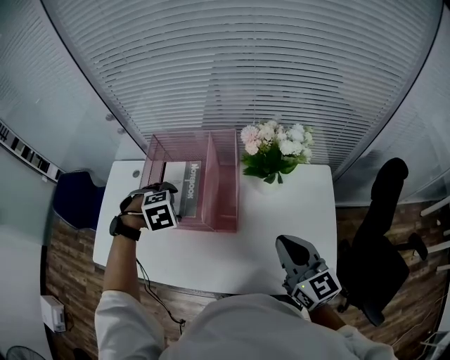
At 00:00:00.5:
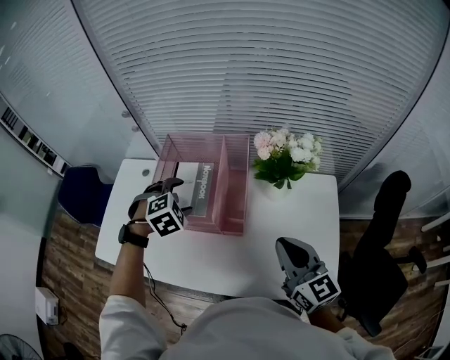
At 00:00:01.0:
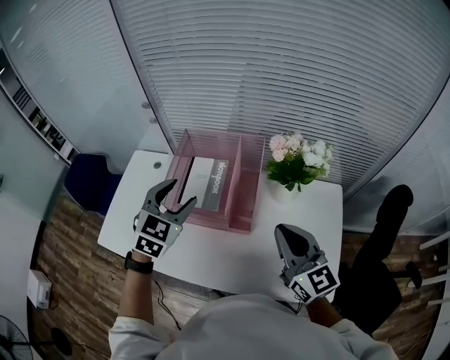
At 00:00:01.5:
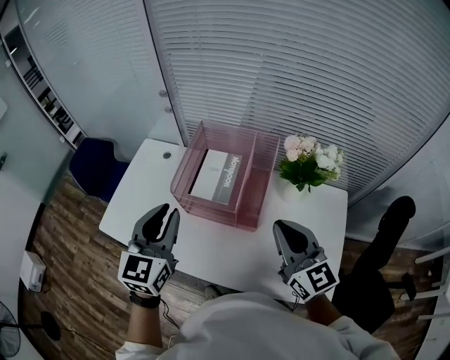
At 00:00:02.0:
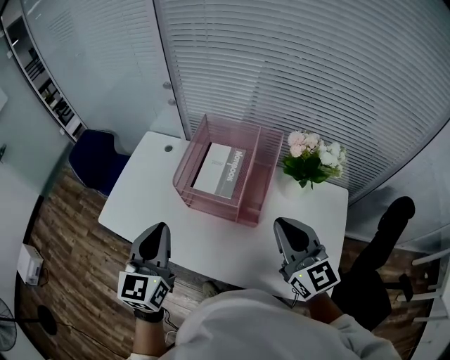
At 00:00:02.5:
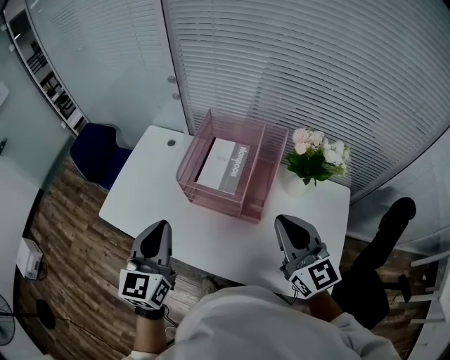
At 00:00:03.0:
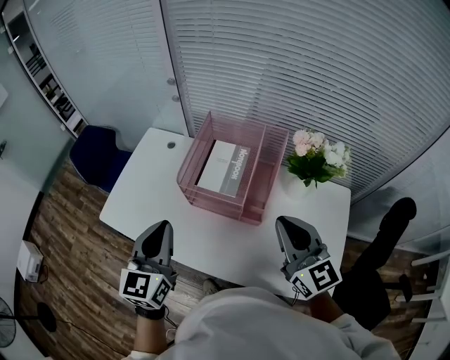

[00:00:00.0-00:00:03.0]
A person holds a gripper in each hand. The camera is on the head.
00:00:00.0 to 00:00:01.5: The left gripper travels upward by about 20 cm, tilts its fingers approximately 70 degrees upward, and closes its fingers. Meanwhile the right gripper changes place by approximately 10 cm.
00:00:01.5 to 00:00:03.0: The left gripper moves some 5 cm.

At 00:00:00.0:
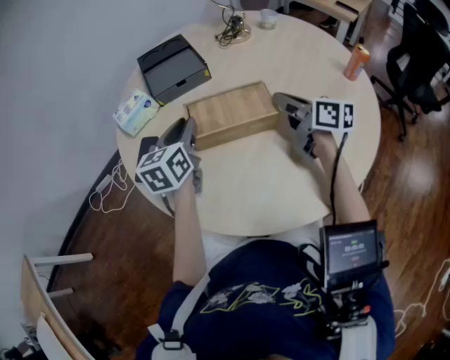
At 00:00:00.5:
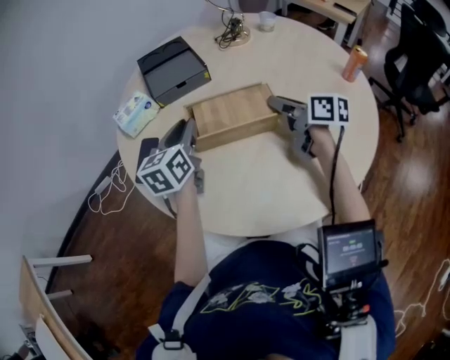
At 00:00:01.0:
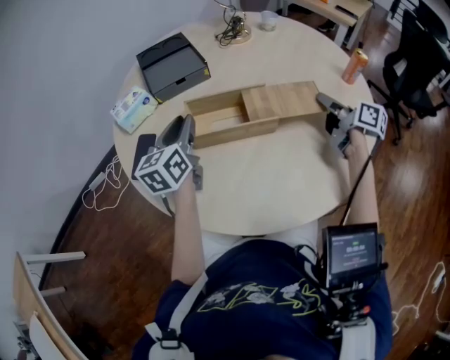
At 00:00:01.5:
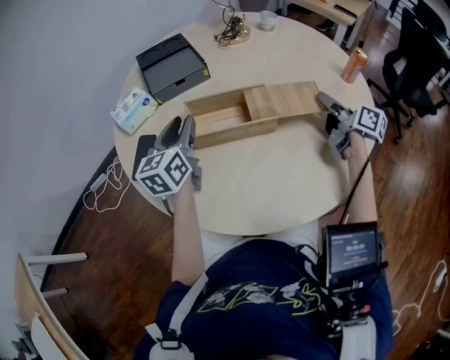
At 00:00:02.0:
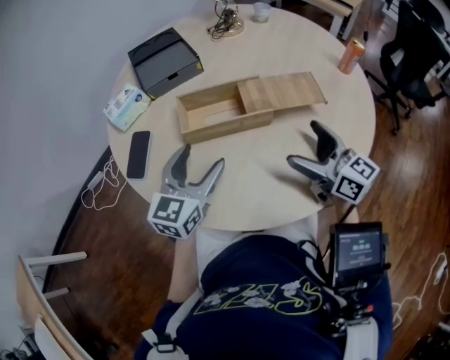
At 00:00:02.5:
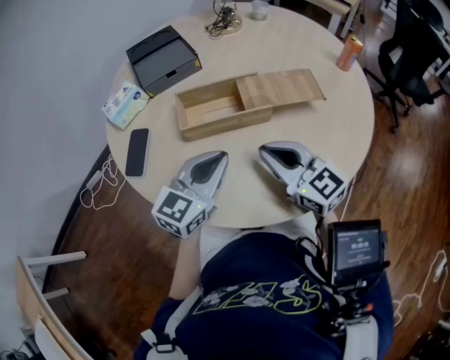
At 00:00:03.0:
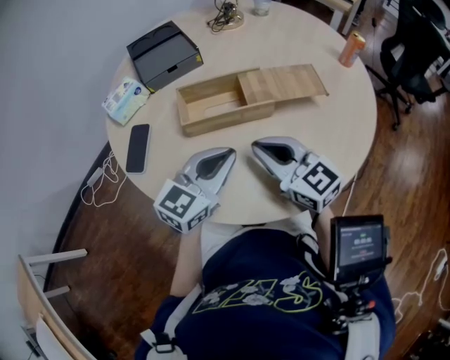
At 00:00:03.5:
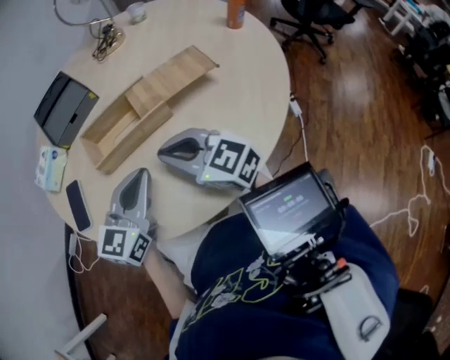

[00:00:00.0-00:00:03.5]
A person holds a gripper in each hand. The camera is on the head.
00:00:00.0 to 00:00:02.0: The two grippers go roughly 10 cm backward. The right gripper travels to the right and back again, approximately 15 cm each way, changes its angle by about 20 degrees, and opens its fingers; the left gripper swivels approximately 20 degrees, and opens.
00:00:02.0 to 00:00:03.5: The left gripper ends up about 5 cm from where it was, and closes, while the right gripper is displaced to the left by roughly 15 cm, and closes up.

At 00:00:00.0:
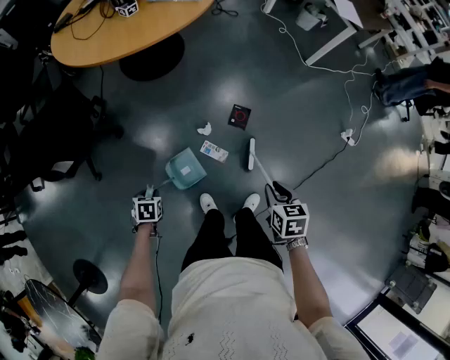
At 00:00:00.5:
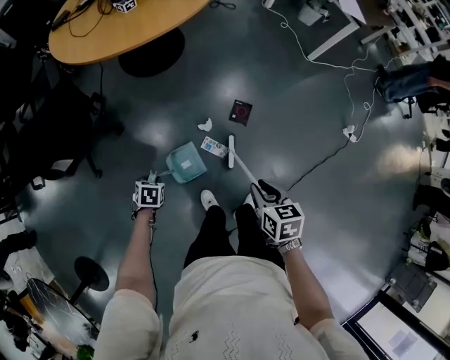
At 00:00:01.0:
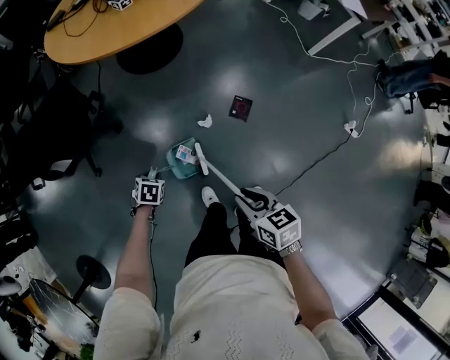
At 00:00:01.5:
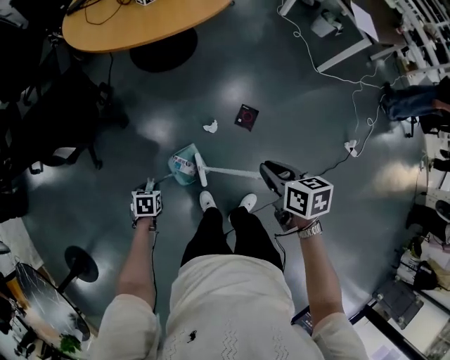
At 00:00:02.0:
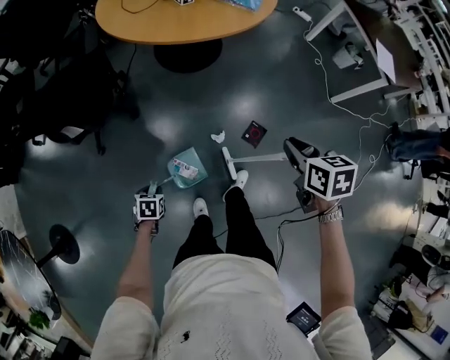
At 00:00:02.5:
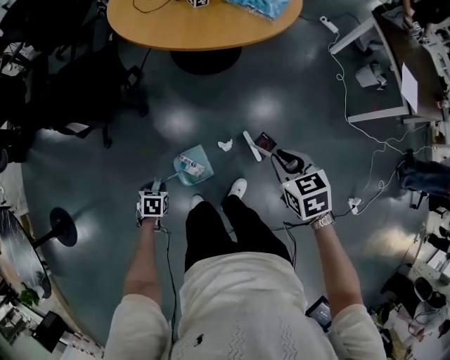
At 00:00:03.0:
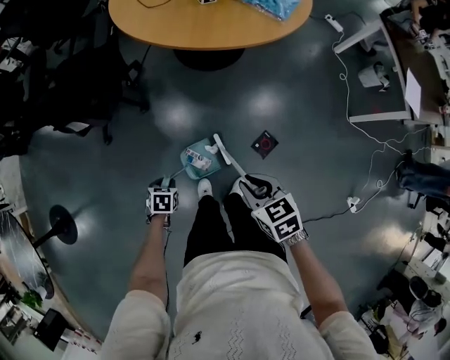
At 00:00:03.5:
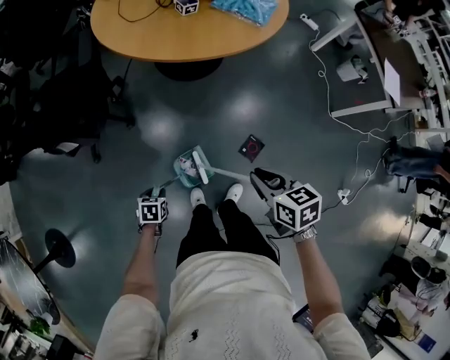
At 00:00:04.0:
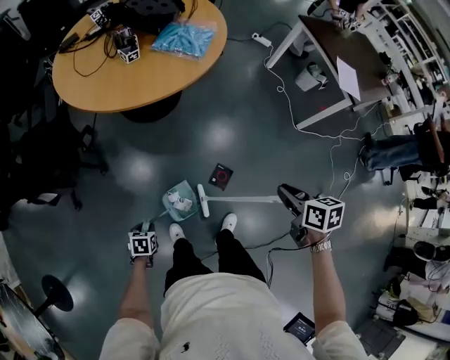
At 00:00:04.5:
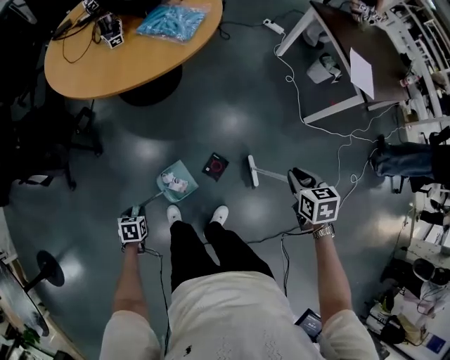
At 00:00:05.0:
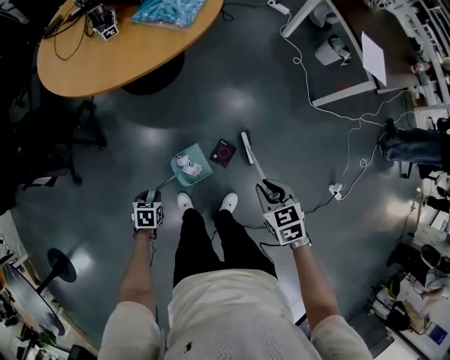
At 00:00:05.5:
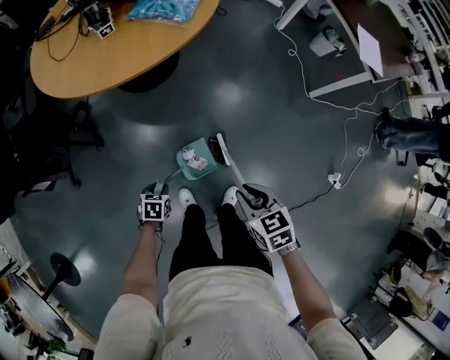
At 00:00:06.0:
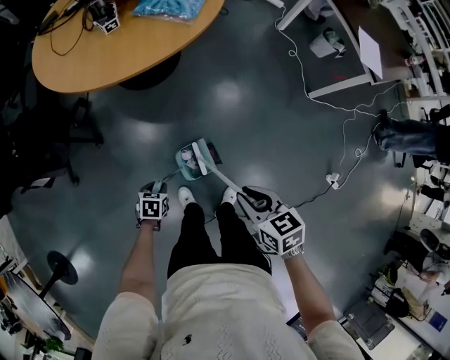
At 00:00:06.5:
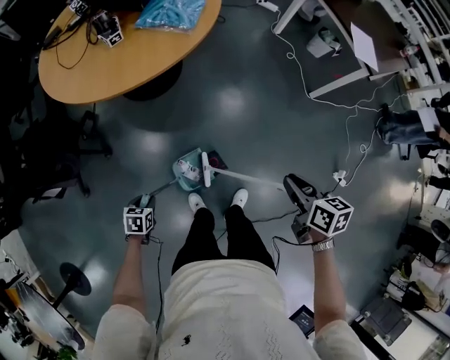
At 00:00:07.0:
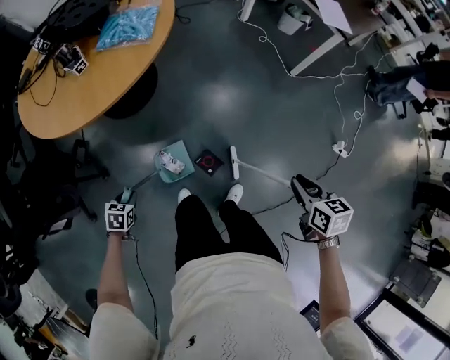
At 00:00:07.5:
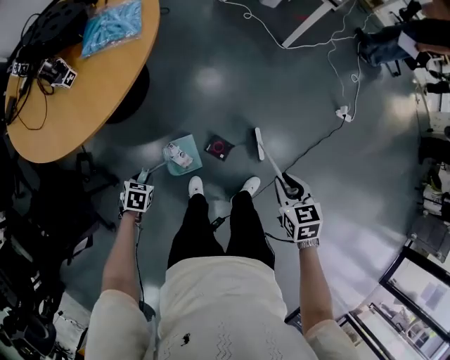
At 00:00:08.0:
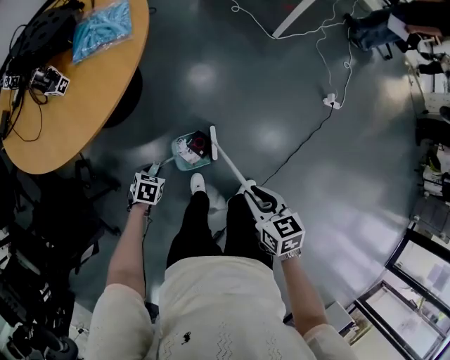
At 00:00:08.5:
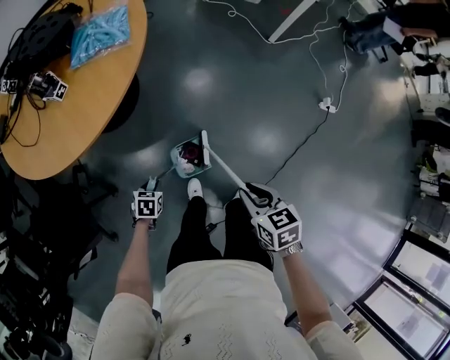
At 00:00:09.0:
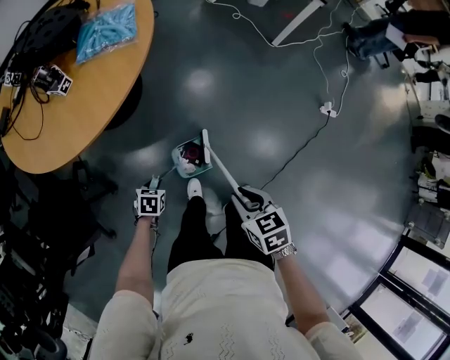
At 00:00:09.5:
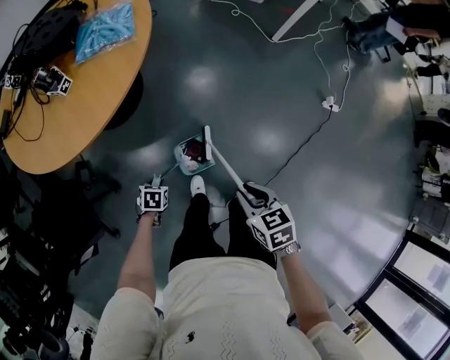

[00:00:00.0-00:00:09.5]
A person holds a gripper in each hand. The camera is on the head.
00:00:00.0 to 00:00:02.0: The right gripper shifts by about 25 cm, and rotates about 20 degrees.
00:00:02.0 to 00:00:04.0: The left gripper is displaced to the right and forward by approximately 15 cm, while the right gripper moves to the right, roughly 20 cm.
00:00:04.0 to 00:00:05.5: The left gripper travels to the right and forward by approximately 15 cm. The right gripper goes about 10 cm downward, reaches about 15 cm to the right, then returns, and rotates some 20 degrees.
00:00:05.5 to 00:00:07.5: The left gripper shifts by some 20 cm, and turns by some 40 degrees. Meanwhile the right gripper moves some 5 cm upward and comes back, and changes its angle by about 40 degrees.
00:00:07.5 to 00:00:09.5: The right gripper travels to the left by about 15 cm.

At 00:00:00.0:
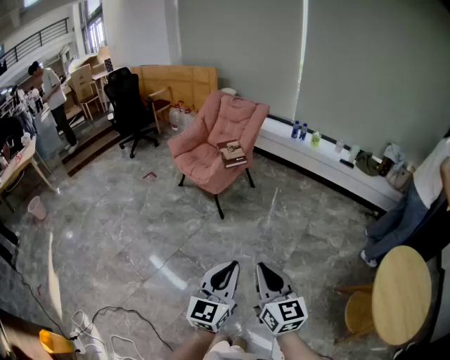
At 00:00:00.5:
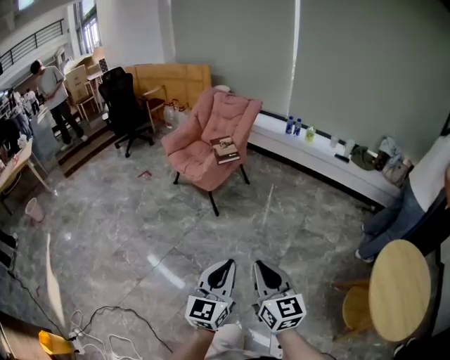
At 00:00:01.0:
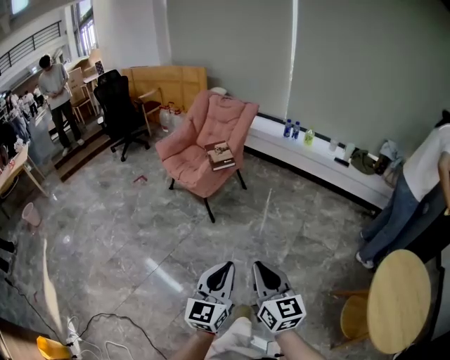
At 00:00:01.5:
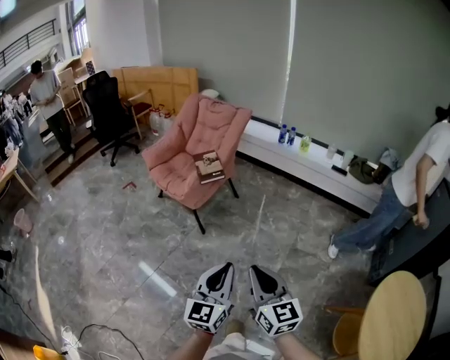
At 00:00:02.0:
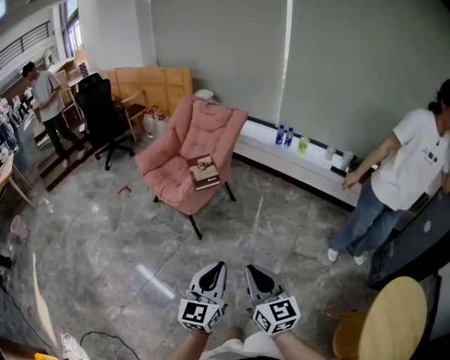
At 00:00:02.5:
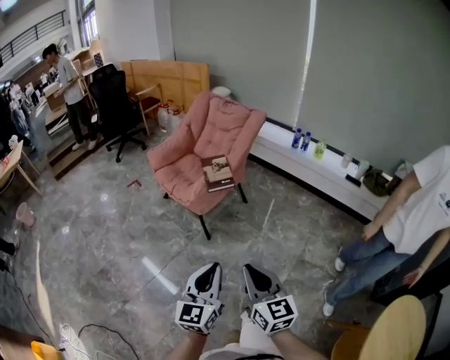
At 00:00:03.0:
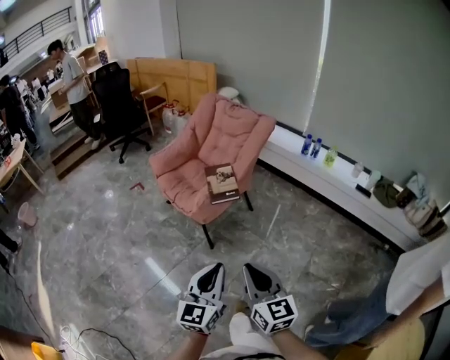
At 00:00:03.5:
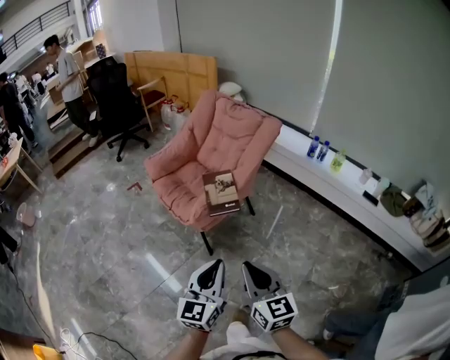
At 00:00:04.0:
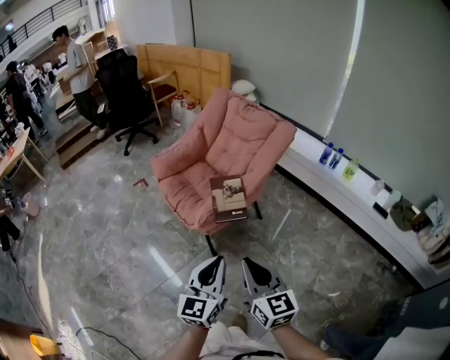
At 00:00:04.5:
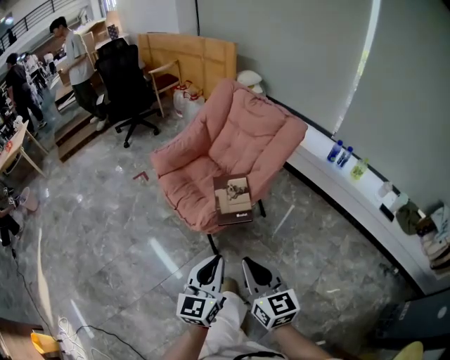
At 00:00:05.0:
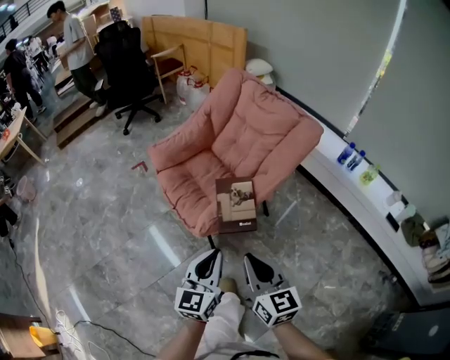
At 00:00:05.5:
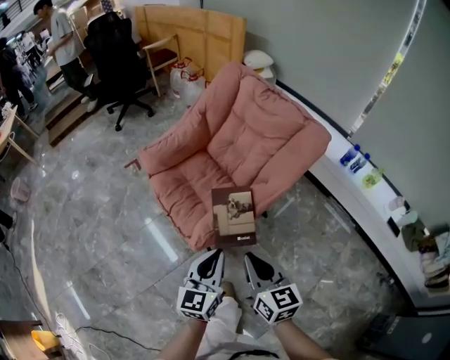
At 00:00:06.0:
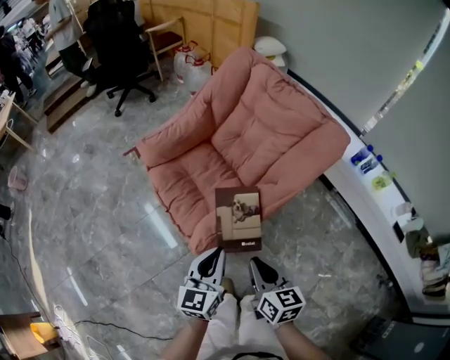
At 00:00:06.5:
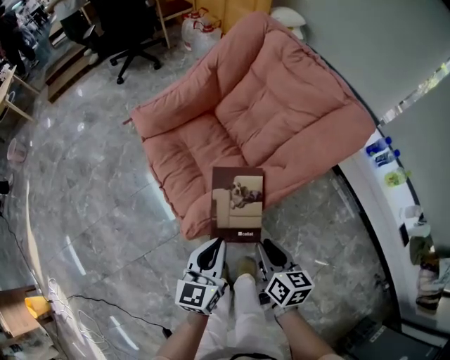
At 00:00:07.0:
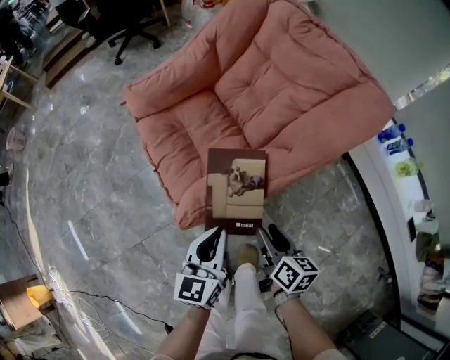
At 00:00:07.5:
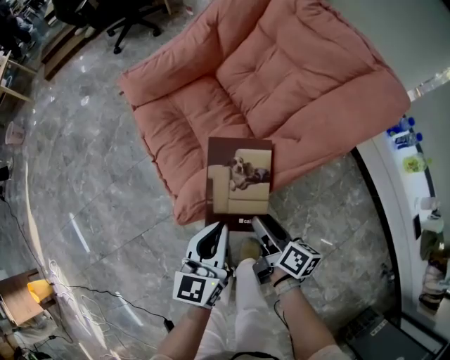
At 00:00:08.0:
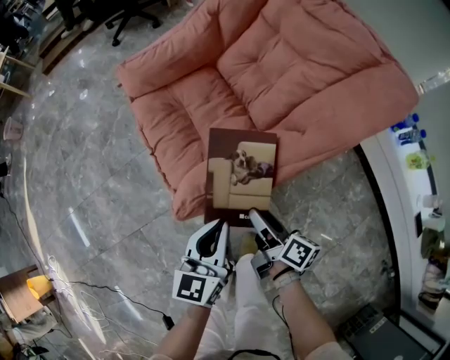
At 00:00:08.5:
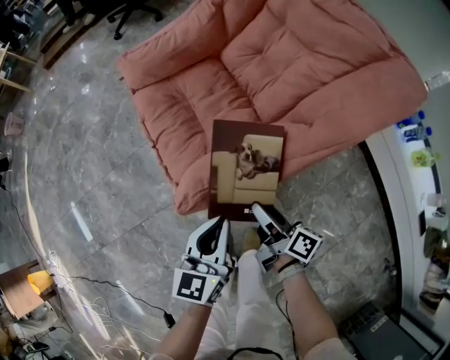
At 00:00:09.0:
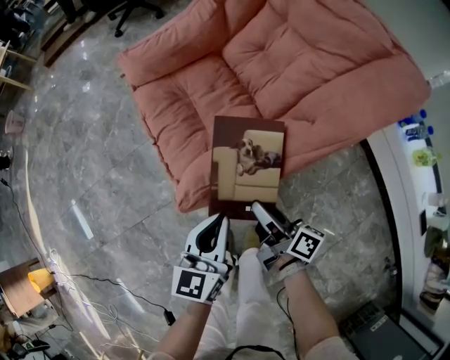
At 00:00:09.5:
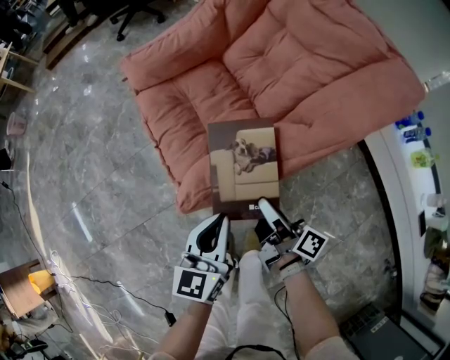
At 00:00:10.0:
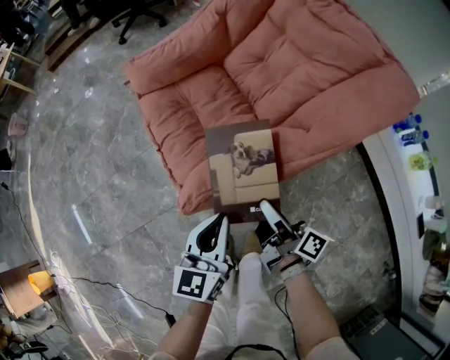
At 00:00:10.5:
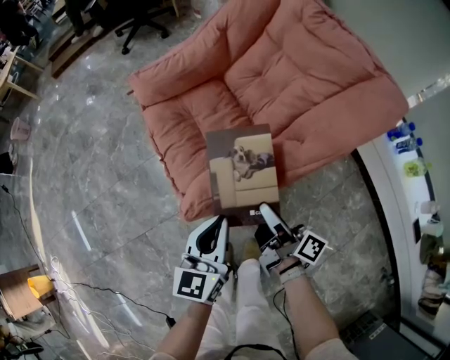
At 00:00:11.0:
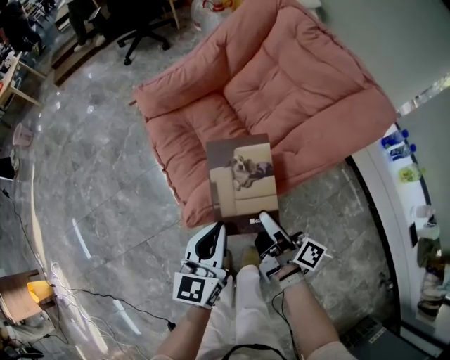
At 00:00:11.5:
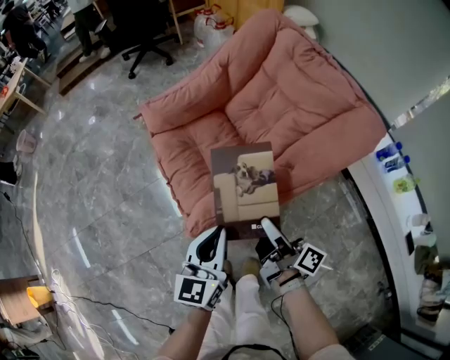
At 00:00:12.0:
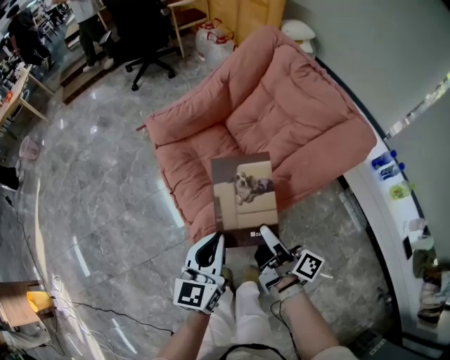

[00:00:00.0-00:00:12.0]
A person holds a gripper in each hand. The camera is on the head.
00:00:00.0 to 00:00:02.0: The grippers both shift forward by some 20 cm.
00:00:02.0 to 00:00:04.0: Both grippers move forward, approximately 30 cm.
00:00:04.0 to 00:00:06.0: The grippers both shift forward and downward by approximately 30 cm. The right gripper rotates about 30 degrees.
00:00:06.0 to 00:00:08.0: The right gripper heads downward, covering roughly 15 cm, swivels approximately 40 degrees, and opens, while the left gripper heads downward, covering approximately 10 cm.
00:00:08.0 to 00:00:10.0: The grippers make only small movements.
00:00:10.0 to 00:00:12.0: Both grippers travel together upward, some 10 cm.
